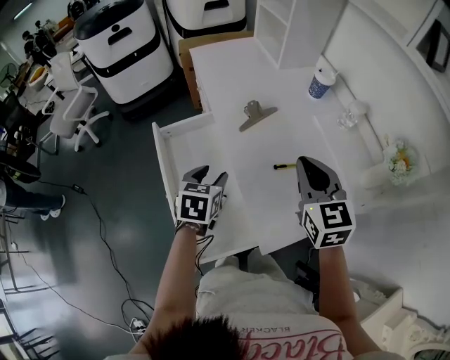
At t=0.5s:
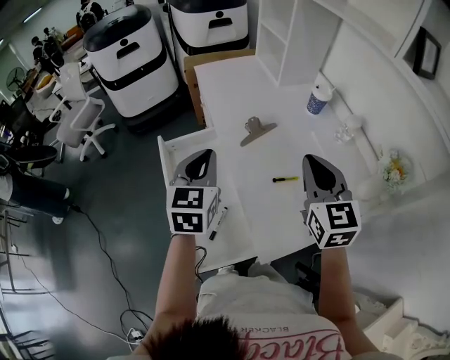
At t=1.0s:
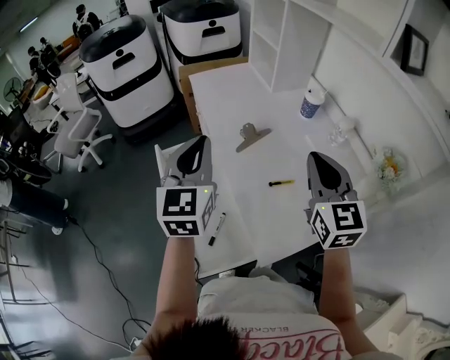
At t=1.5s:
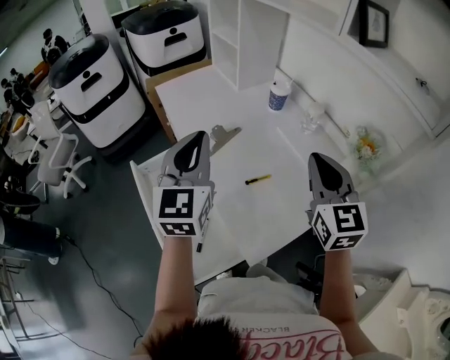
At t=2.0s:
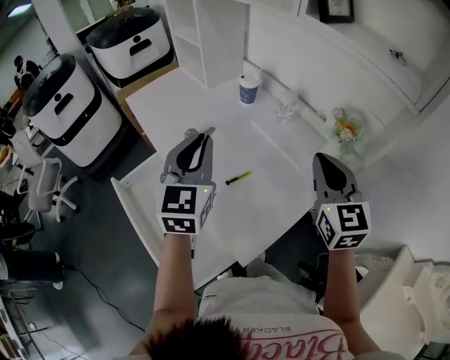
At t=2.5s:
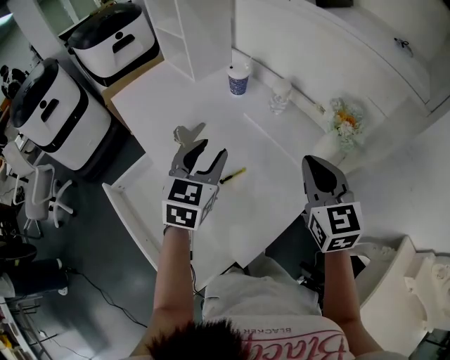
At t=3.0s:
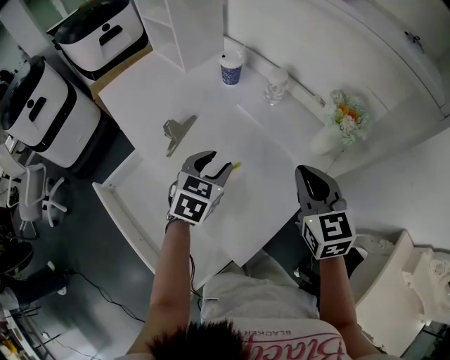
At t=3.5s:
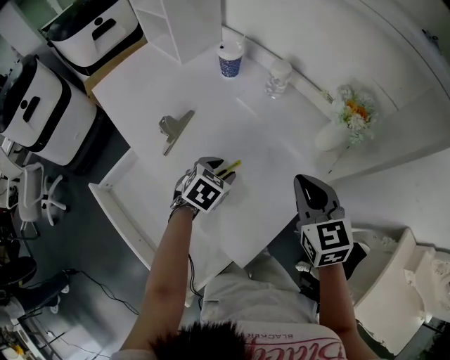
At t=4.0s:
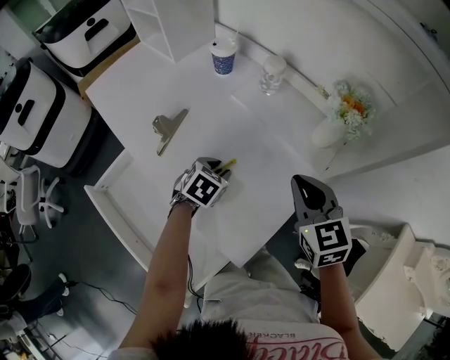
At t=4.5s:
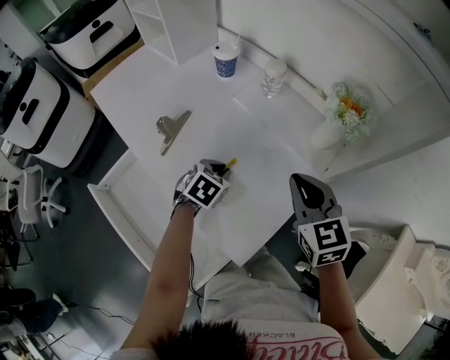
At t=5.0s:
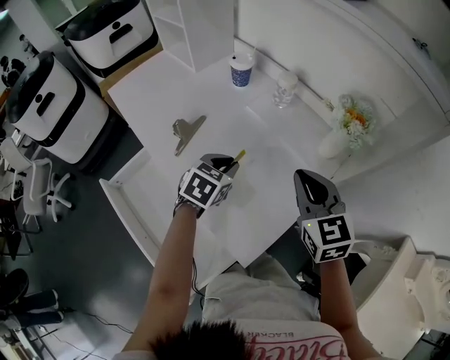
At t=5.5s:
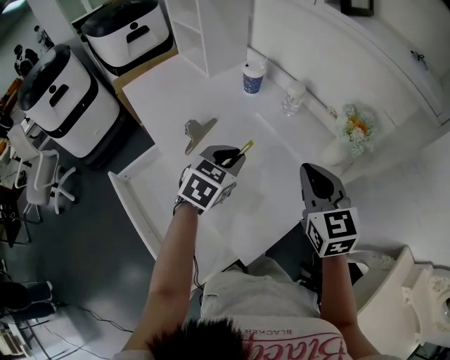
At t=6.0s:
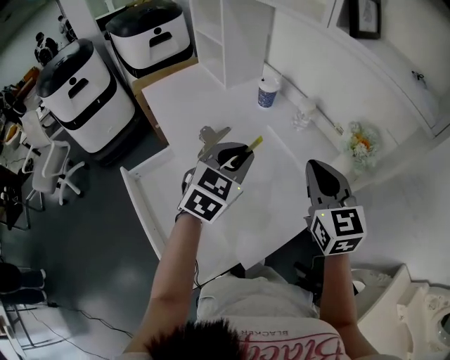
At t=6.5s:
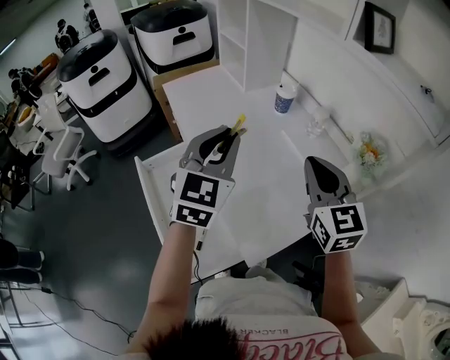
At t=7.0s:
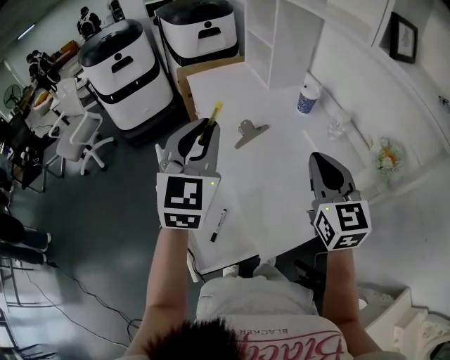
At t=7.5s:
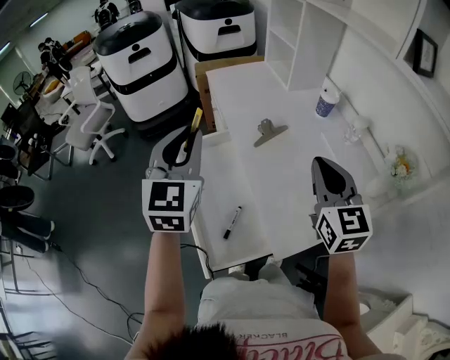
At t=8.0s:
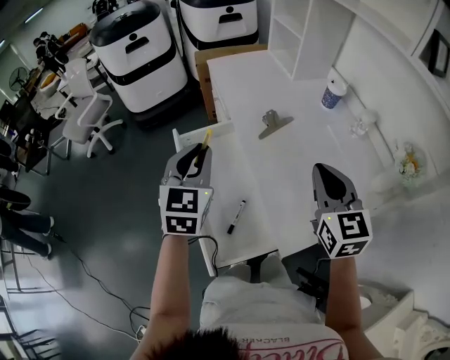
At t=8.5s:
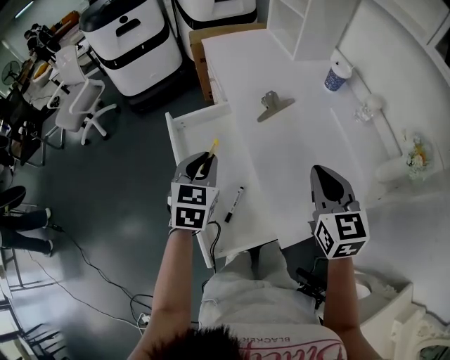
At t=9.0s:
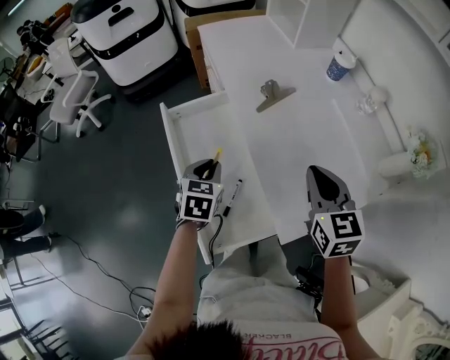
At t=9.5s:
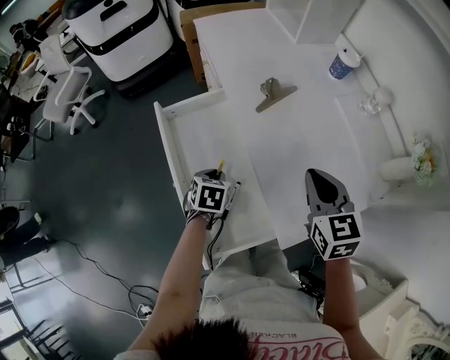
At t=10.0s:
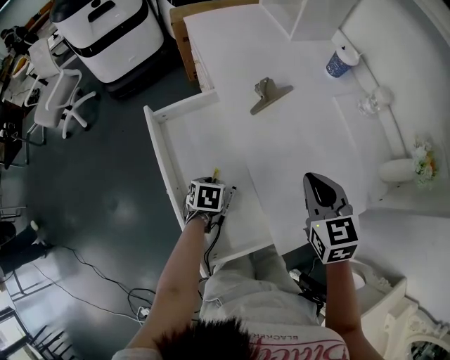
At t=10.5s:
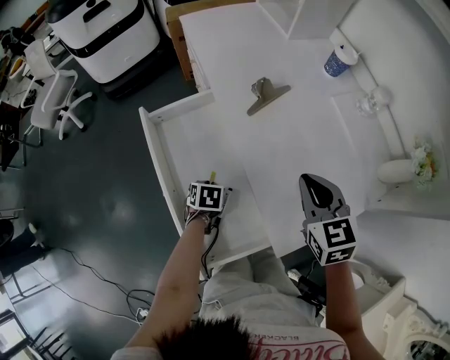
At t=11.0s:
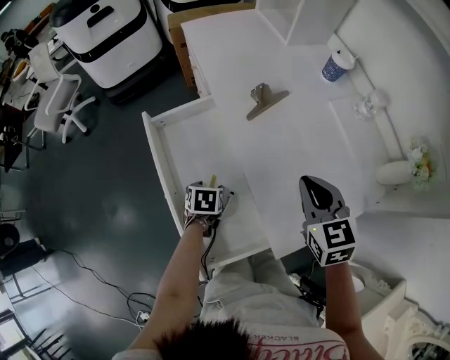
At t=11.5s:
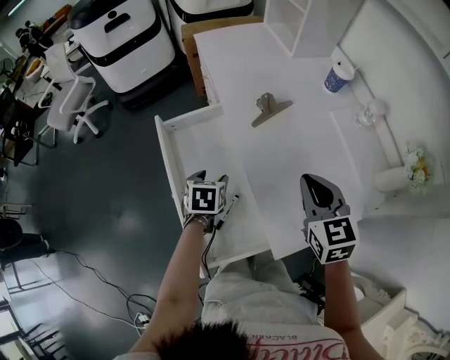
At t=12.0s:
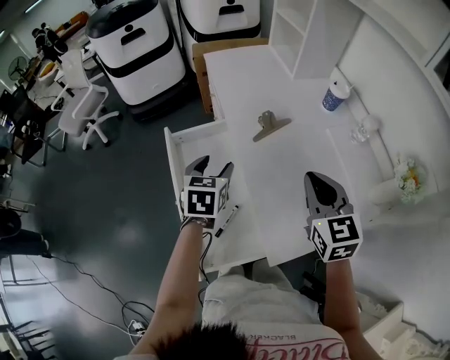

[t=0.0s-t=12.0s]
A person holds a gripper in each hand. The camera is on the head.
t=0.0s to t=2.0s: The right gripper is displaced to the right and upward by approximately 20 cm, and swivels approximately 30 degrees. Meanwhile the left gripper is displaced upward and to the right by about 25 cm, points its fingers about 40 degrees further upward, and closes its fingers.
t=2.0s to t=4.0s: The right gripper moves downward, some 15 cm; the left gripper is displaced downward by roughly 30 cm, tilts its fingers about 50 degrees downward, and opens up.
t=4.0s to t=6.0s: The right gripper is displaced upward by about 10 cm. The left gripper shifts some 25 cm upward, and tips its fingers upward by some 30 degrees.
t=6.0s to t=8.0s: The left gripper travels upward and back again, roughly 10 cm each way, and swivels roughly 40 degrees. The right gripper ends up approximately 15 cm from where it was.
t=8.0s to t=10.0s: The right gripper travels downward by about 15 cm; the left gripper travels downward by about 35 cm, and angles its fingers downward, by about 50 degrees.
t=10.0s to t=12.0s: The right gripper shifts about 10 cm upward. The left gripper heads upward, covering about 25 cm, turns by roughly 30 degrees, and opens its fingers.

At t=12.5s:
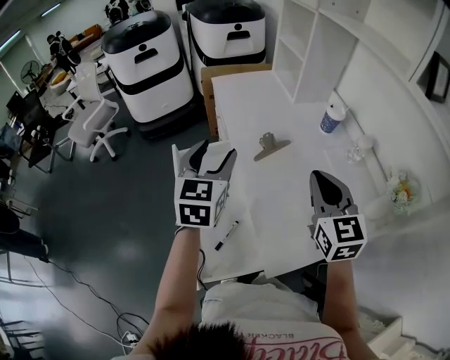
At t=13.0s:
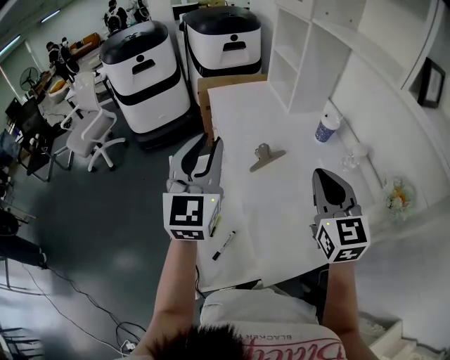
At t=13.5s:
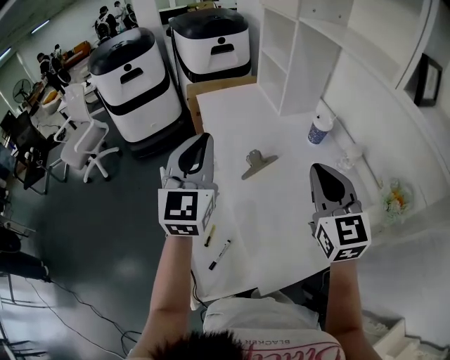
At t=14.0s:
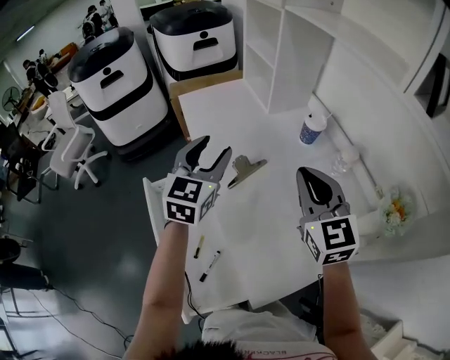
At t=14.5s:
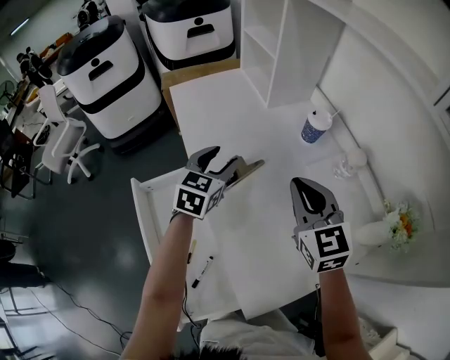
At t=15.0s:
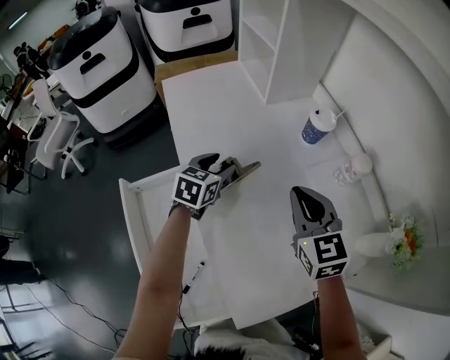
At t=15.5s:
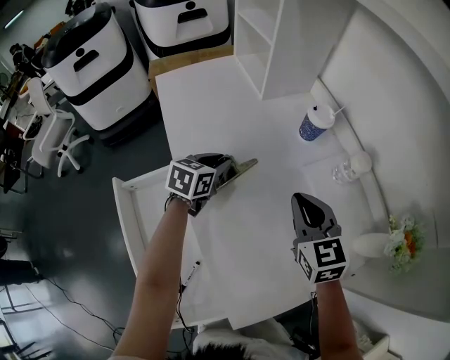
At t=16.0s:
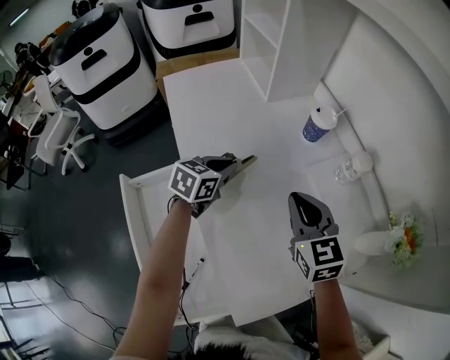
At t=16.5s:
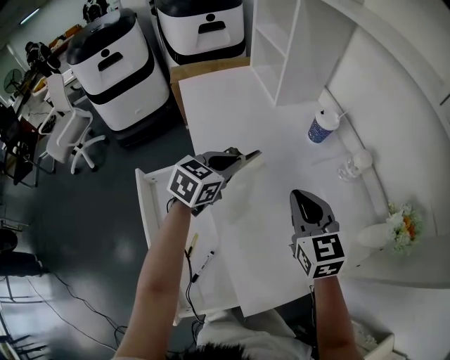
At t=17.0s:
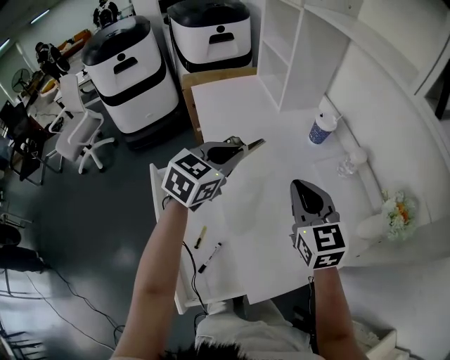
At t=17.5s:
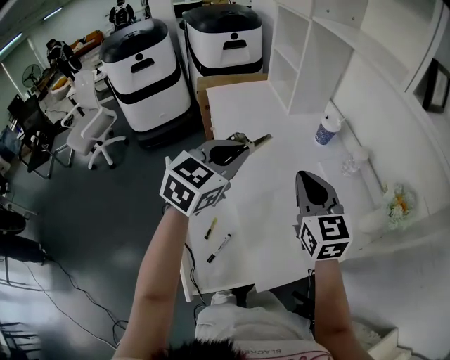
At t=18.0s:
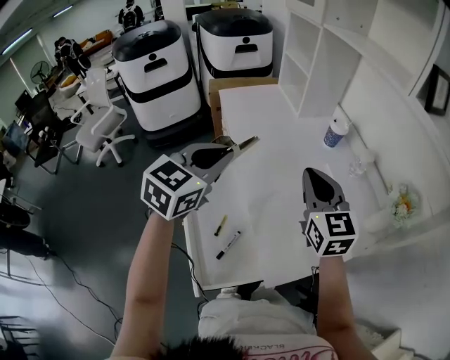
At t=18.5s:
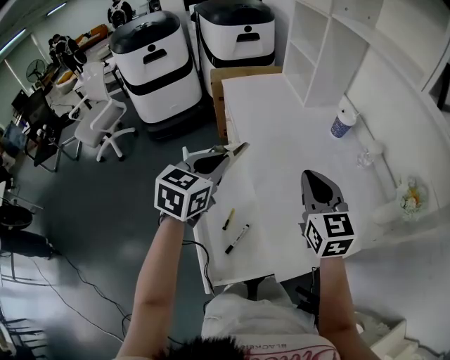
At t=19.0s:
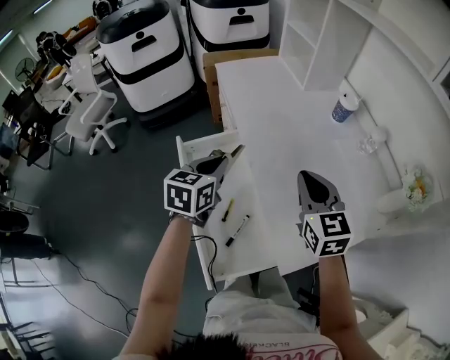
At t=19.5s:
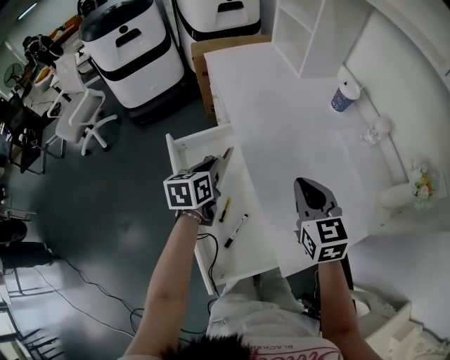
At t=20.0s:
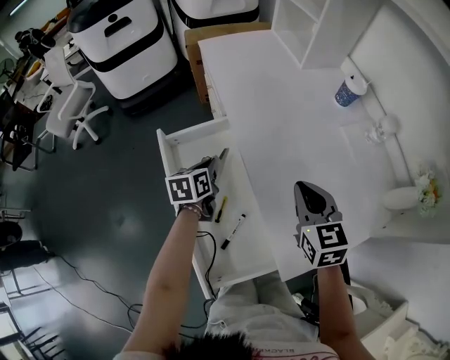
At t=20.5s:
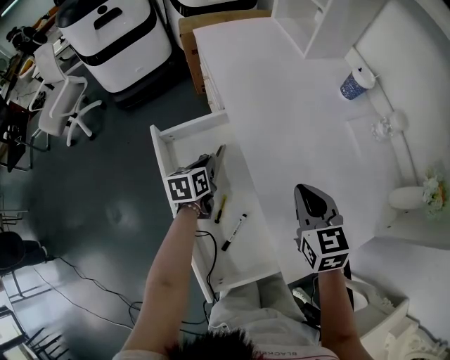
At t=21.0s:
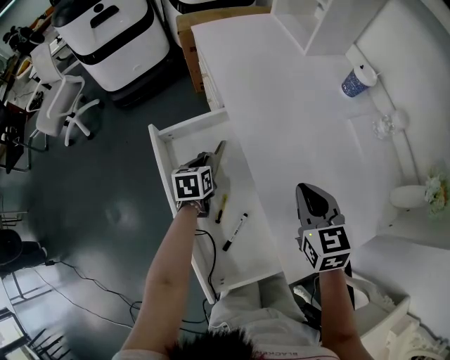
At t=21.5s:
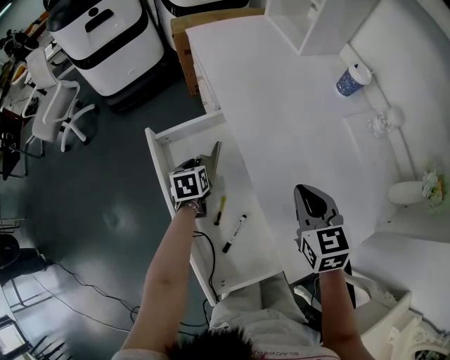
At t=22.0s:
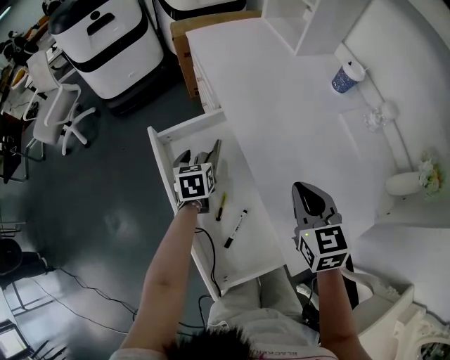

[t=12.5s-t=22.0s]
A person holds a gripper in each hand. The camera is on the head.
t=12.5s to t=14.5s: The left gripper shifts some 25 cm forward, downward and to the right, swivels approximately 20 degrees, and closes and opens again. Meanwhile the right gripper moves forward and downward, about 15 cm.
t=14.5s to t=16.5s: The left gripper goes downward and returns, some 10 cm each way, and closes up.
t=16.5s to t=18.0s: The left gripper heads upward, backward and to the left, covering about 25 cm. The right gripper travels upward and backward by some 15 cm.
t=18.0s to t=20.0s: The left gripper moves downward, approximately 35 cm, and rotates around the line of its fingers by approximately 50 degrees, counterclockwise from behind; the right gripper goes roughly 15 cm downward, and changes its angle by roughly 20 degrees.
t=20.0s to t=22.0s: The left gripper opens up.

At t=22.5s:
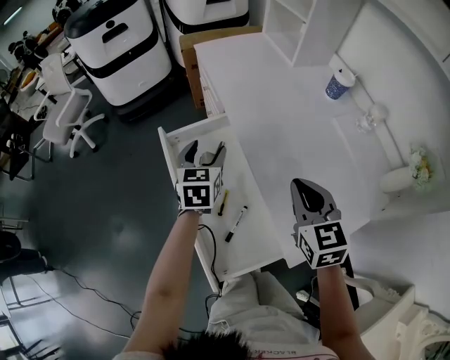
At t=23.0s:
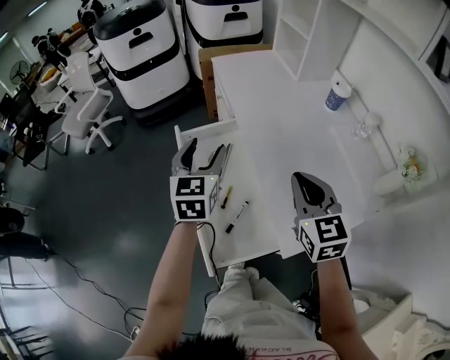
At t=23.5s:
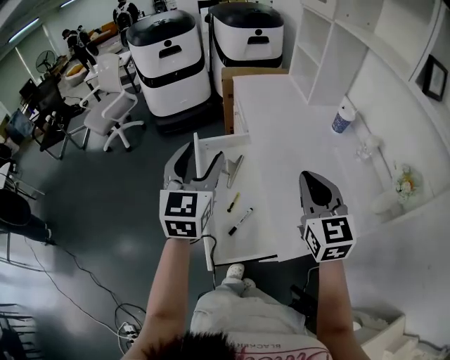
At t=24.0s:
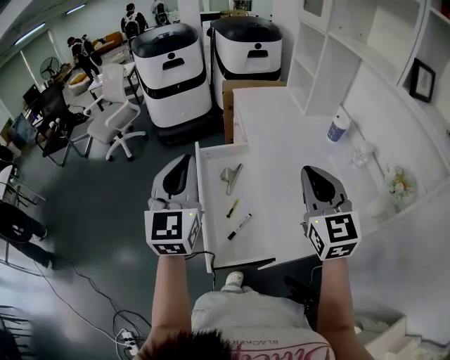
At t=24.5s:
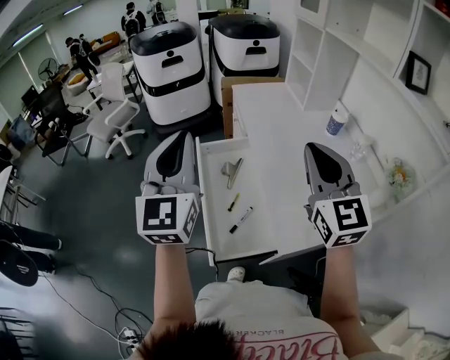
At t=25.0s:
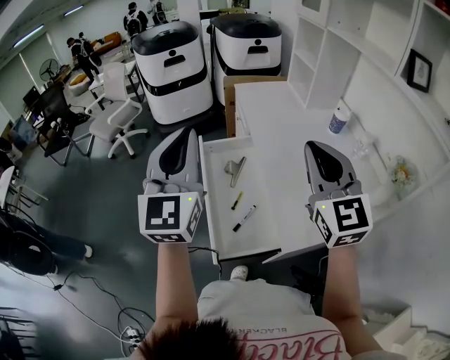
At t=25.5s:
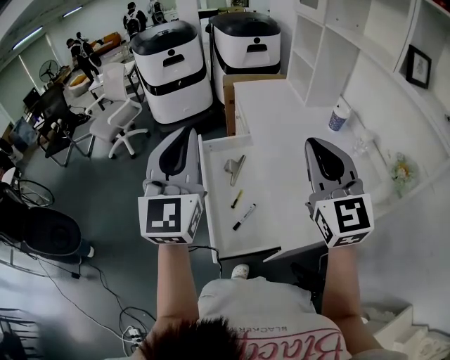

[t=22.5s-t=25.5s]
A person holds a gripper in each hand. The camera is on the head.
t=22.5s to t=24.0s: The left gripper shifts some 35 cm upward and backward, tilts its fingers approximately 30 degrees upward, and closes up, while the right gripper goes some 20 cm upward and backward, and rotates some 30 degrees.
t=24.0s to t=25.5s: Both grippers move upward, some 5 cm.

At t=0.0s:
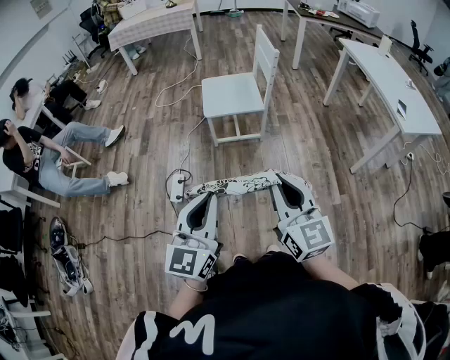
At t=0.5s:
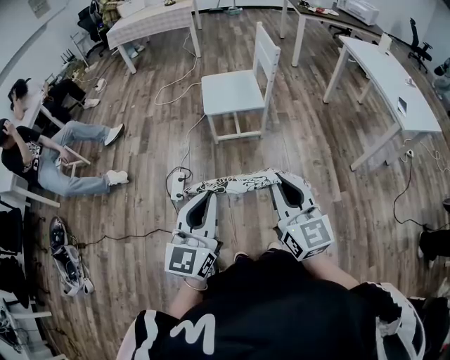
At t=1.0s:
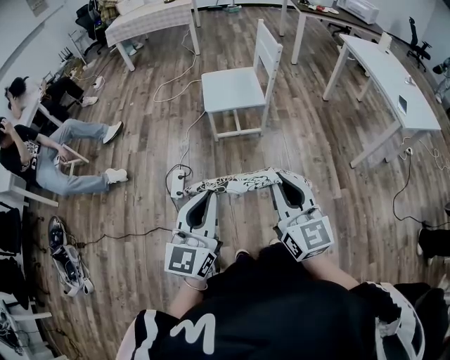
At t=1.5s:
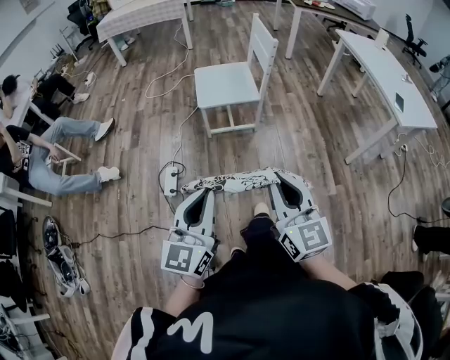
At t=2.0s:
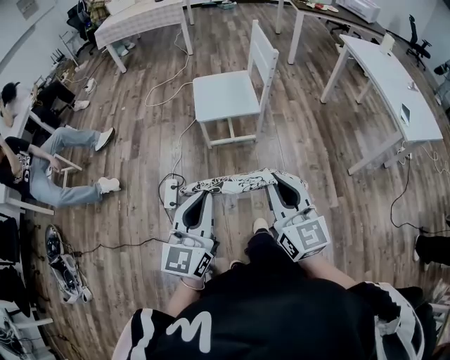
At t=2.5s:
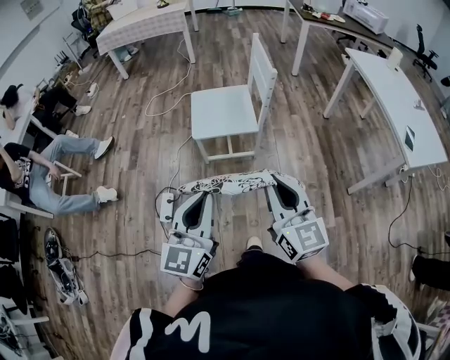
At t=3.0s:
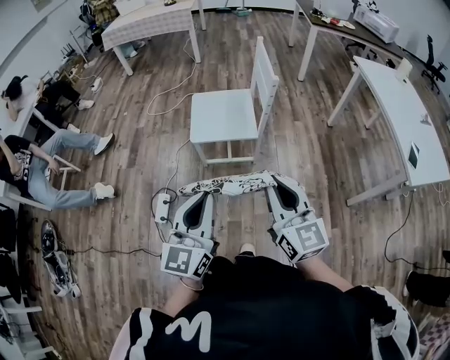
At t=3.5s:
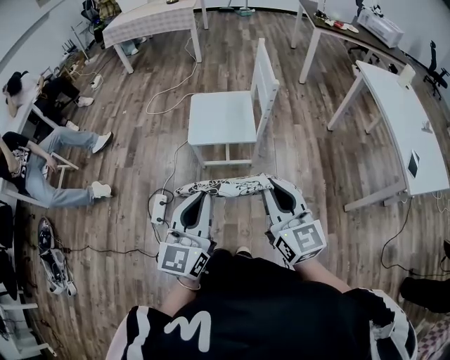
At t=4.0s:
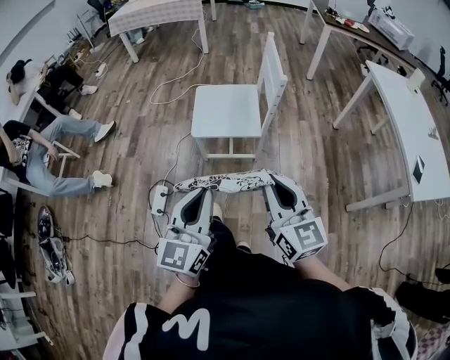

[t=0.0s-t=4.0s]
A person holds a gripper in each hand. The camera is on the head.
t=0.0s to t=2.0s: The grippers both shift forward by some 10 cm.
t=2.0s to t=4.0s: Both grippers move forward and to the right, some 20 cm.
